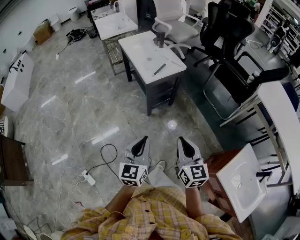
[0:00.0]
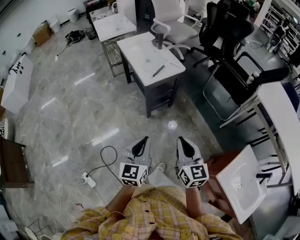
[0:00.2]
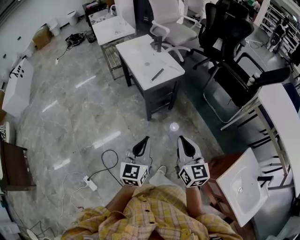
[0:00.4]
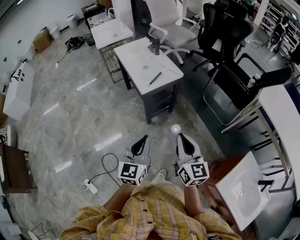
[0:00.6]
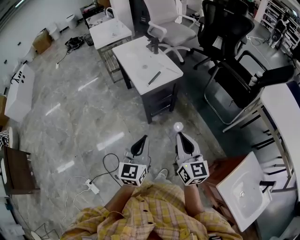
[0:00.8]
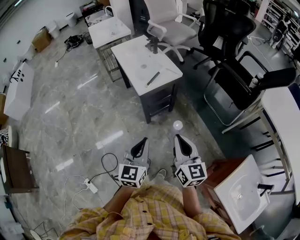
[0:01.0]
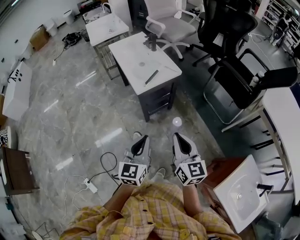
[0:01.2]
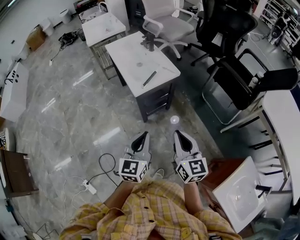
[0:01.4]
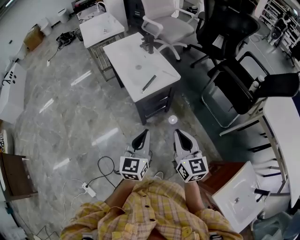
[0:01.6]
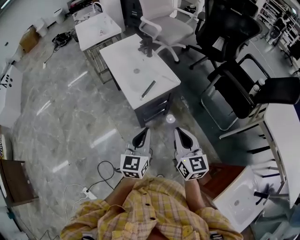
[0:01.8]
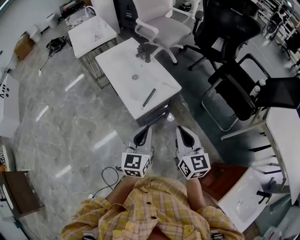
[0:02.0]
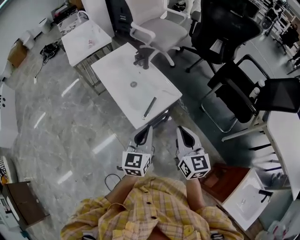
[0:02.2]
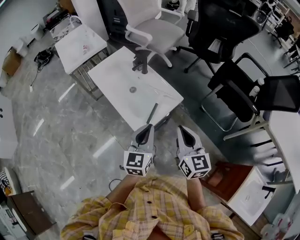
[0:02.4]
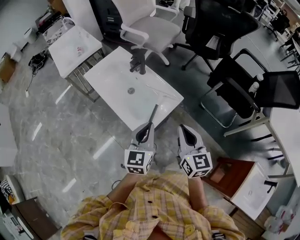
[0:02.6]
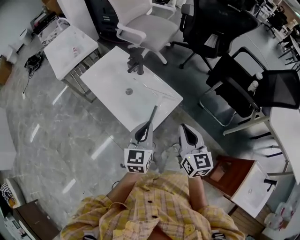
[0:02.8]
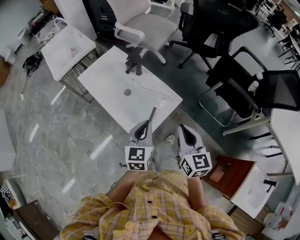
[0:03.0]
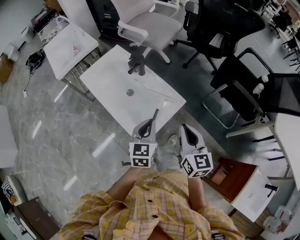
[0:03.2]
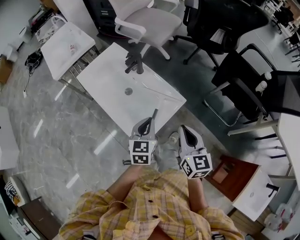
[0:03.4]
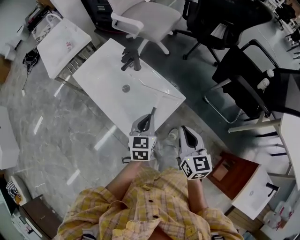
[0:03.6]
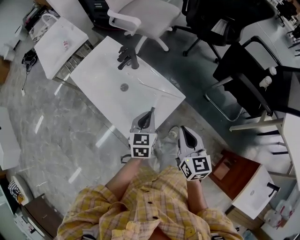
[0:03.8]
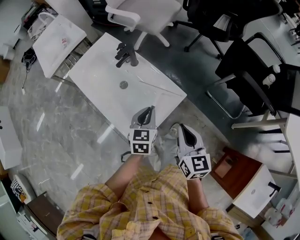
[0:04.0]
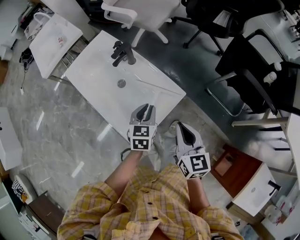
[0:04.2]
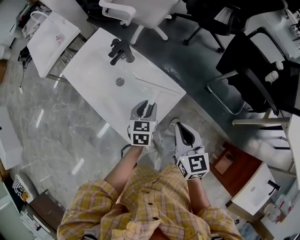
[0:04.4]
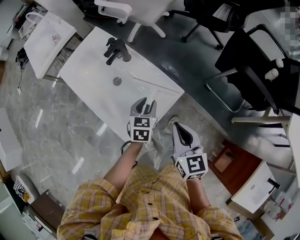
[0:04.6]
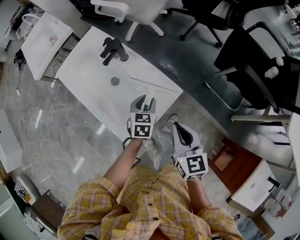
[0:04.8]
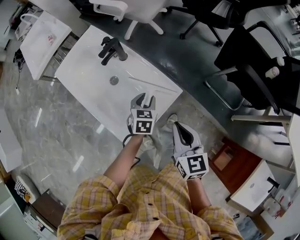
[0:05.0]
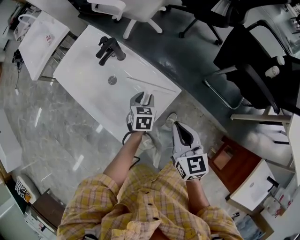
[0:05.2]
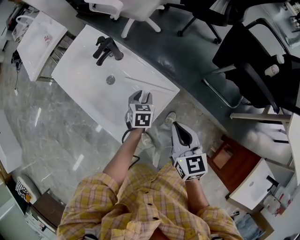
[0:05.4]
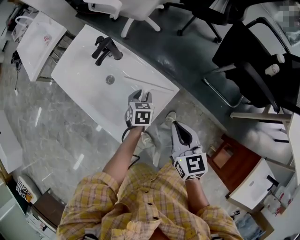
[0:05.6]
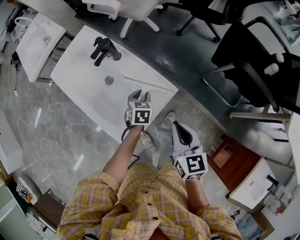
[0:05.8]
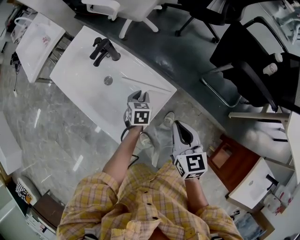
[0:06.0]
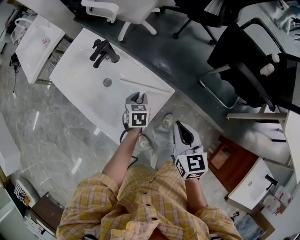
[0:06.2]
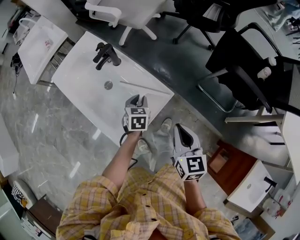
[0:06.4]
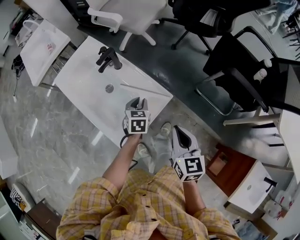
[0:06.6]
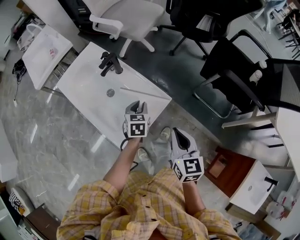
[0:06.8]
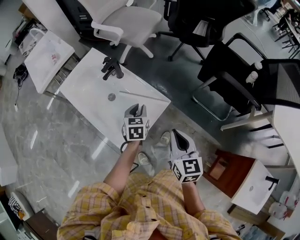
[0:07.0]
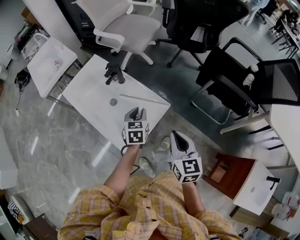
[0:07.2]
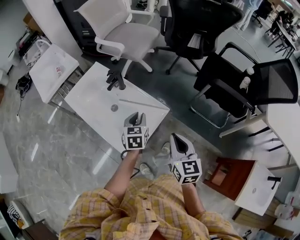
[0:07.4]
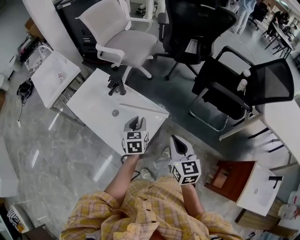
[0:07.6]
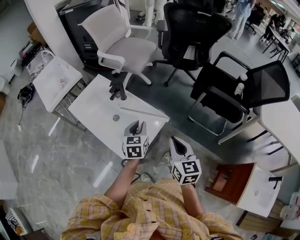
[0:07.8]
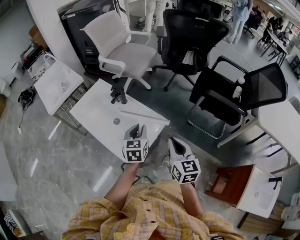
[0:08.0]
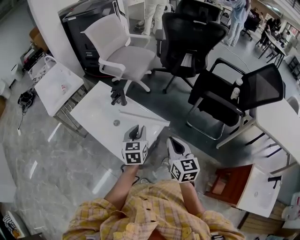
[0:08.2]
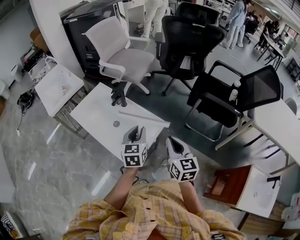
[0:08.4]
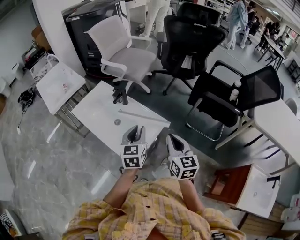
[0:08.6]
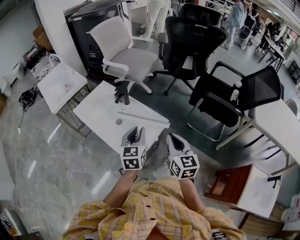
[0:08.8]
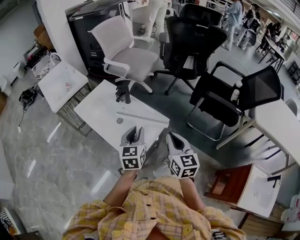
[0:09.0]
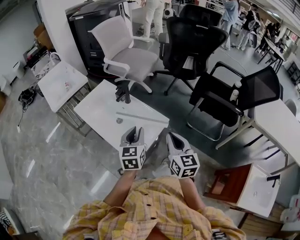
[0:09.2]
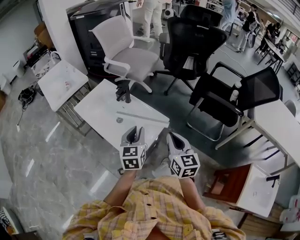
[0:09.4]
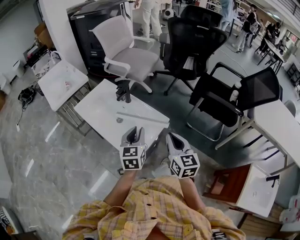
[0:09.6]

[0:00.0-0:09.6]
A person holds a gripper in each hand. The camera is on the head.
0:00.0 to 0:01.6: Both grippers move forward, roughly 20 cm.
0:01.6 to 0:03.2: The two grippers go about 35 cm forward.
0:03.2 to 0:04.8: The left gripper heads downward and forward, covering about 20 cm, turns by approximately 20 degrees, and opens, while the right gripper is displaced downward and forward by some 10 cm.
0:06.4 to 0:08.0: The right gripper moves upward and backward, about 10 cm, while the left gripper is displaced upward by approximately 20 cm, and rotates some 20 degrees.
0:08.0 to 0:09.6: The right gripper shifts by about 5 cm, while the left gripper travels backward and upward by about 10 cm.

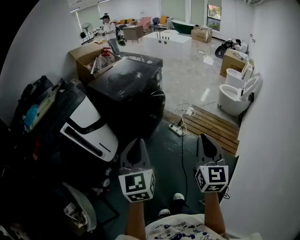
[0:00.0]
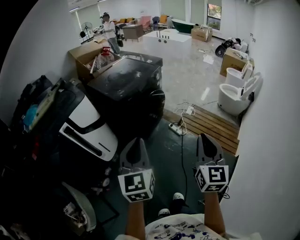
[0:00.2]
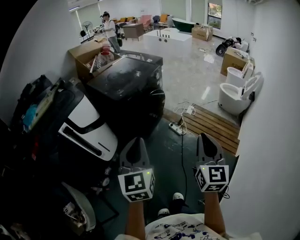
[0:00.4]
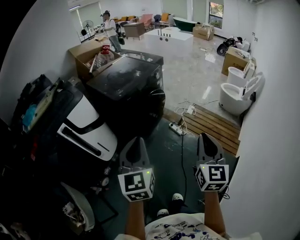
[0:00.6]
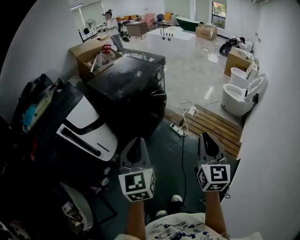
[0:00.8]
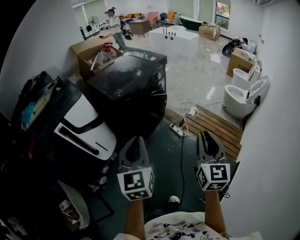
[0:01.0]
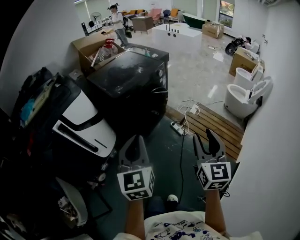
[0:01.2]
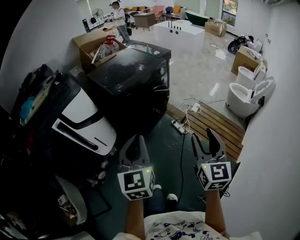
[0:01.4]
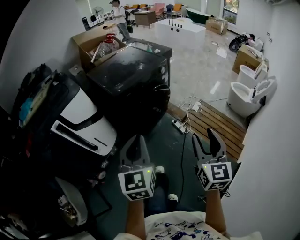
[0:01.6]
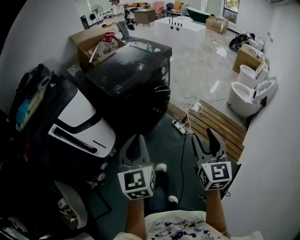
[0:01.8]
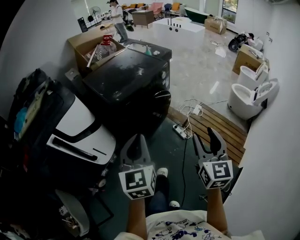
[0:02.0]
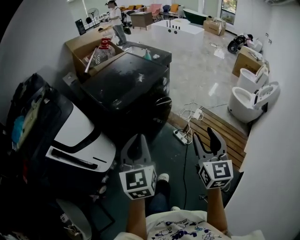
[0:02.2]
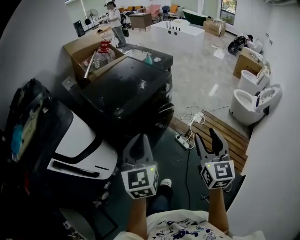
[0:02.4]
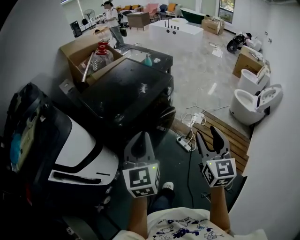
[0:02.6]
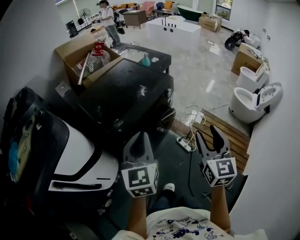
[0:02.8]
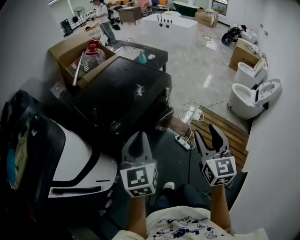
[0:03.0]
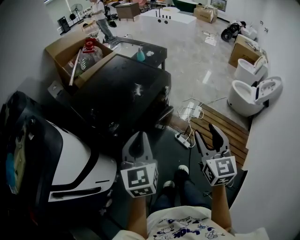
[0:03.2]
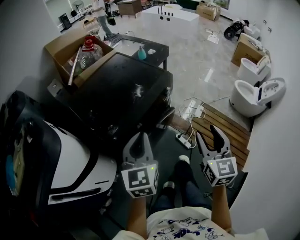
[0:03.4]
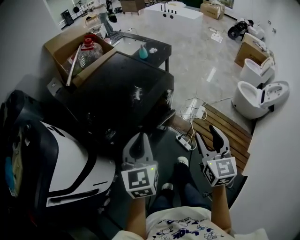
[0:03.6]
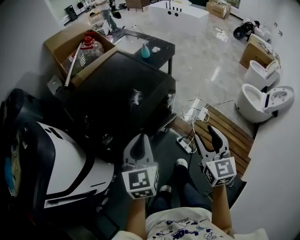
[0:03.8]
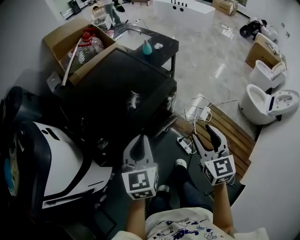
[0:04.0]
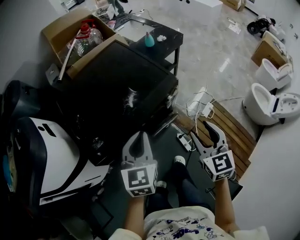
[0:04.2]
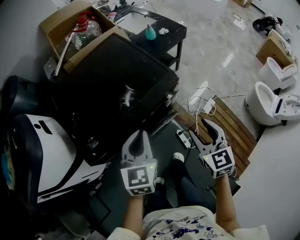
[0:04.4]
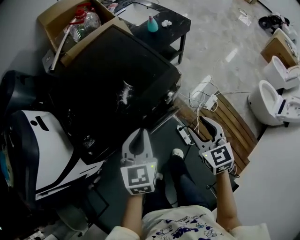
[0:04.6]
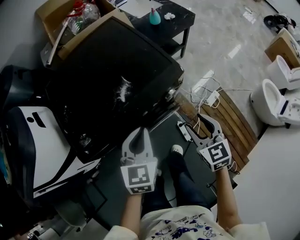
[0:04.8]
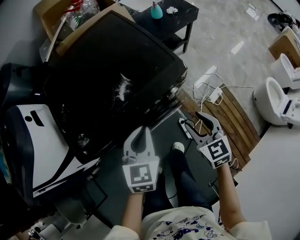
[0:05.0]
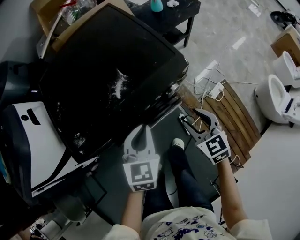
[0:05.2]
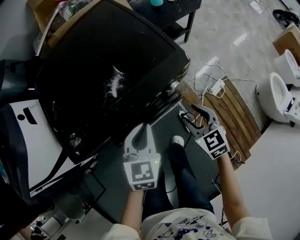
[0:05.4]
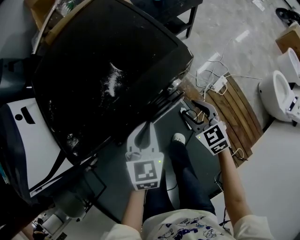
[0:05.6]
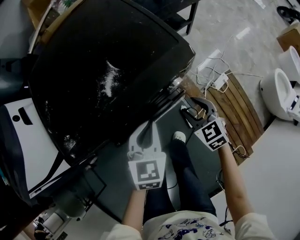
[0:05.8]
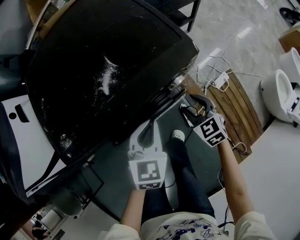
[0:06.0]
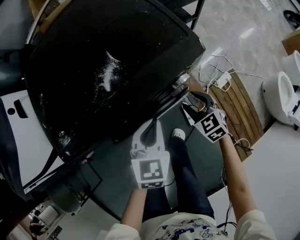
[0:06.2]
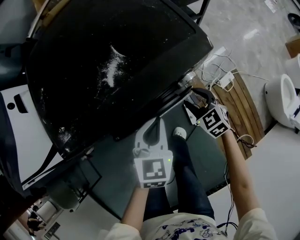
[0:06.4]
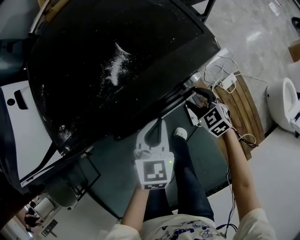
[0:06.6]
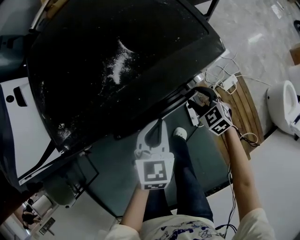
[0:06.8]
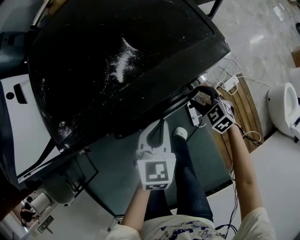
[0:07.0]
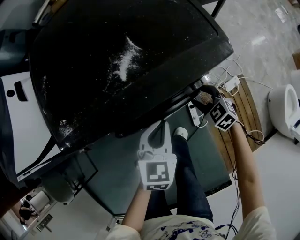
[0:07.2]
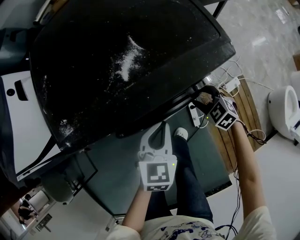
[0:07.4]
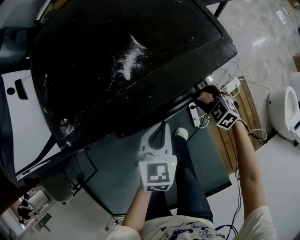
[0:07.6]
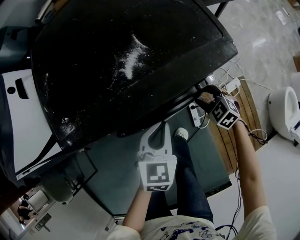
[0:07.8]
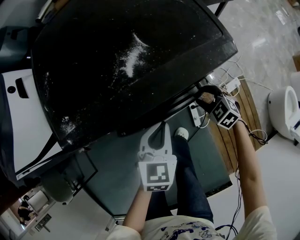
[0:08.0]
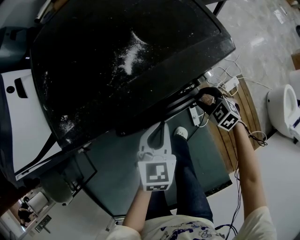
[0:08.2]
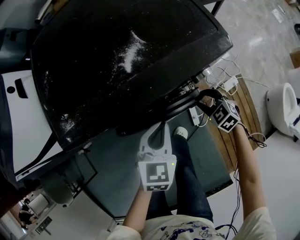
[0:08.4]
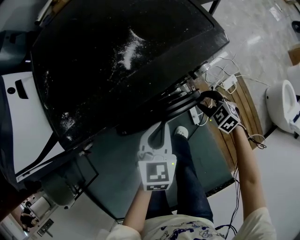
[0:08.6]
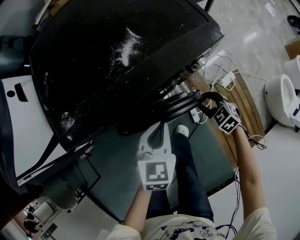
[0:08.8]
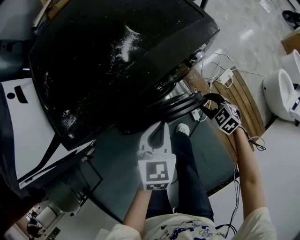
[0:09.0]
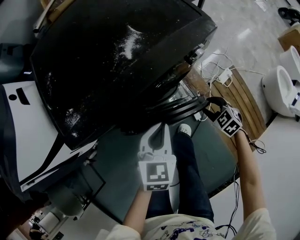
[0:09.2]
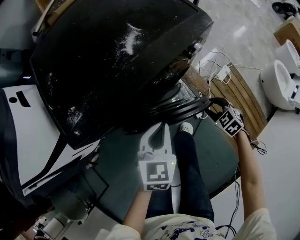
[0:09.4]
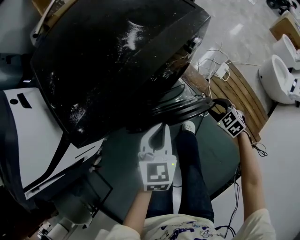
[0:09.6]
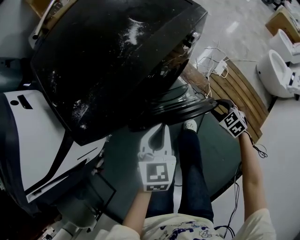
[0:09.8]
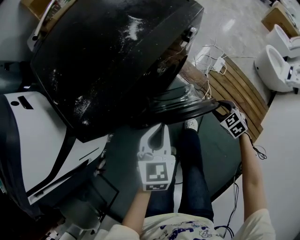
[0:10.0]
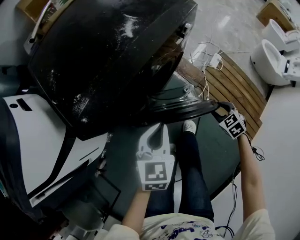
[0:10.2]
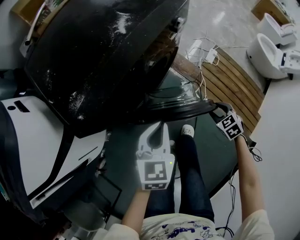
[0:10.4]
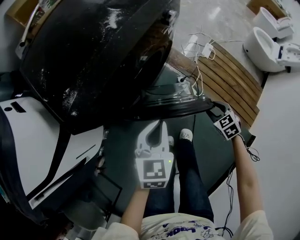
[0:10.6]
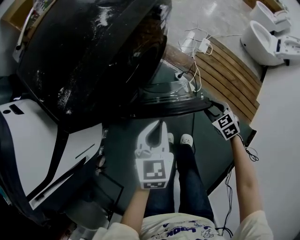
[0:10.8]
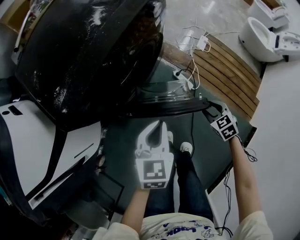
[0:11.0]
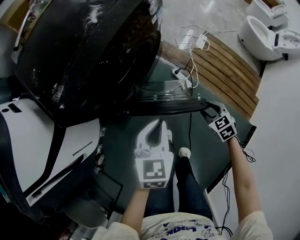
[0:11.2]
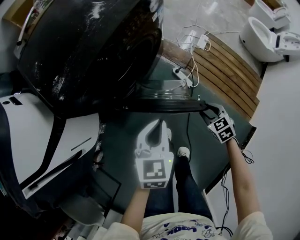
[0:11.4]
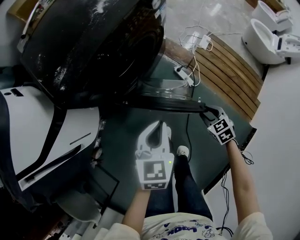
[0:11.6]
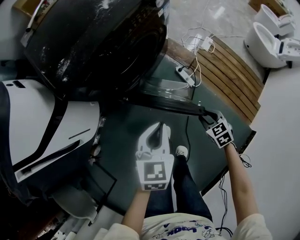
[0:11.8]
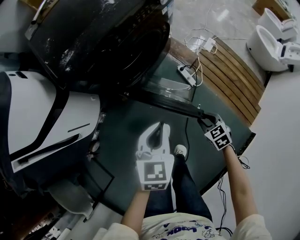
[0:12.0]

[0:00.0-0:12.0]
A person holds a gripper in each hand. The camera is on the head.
0:00.0 to 0:01.6: Both grippers move forward, approximately 10 cm. The right gripper opens its fingers.
0:01.6 to 0:03.0: The two grippers go about 35 cm forward.
0:03.0 to 0:04.4: The left gripper heads forward, downward and to the right, covering about 25 cm. The right gripper moves forward and downward, roughly 30 cm, and swivels roughly 30 degrees.
0:04.4 to 0:06.0: Both grippers travel together downward, roughly 20 cm. The right gripper turns by some 30 degrees.
0:06.0 to 0:07.6: The right gripper shifts approximately 5 cm downward, and swivels roughly 30 degrees.
0:07.6 to 0:09.0: The left gripper changes place by approximately 5 cm. The right gripper moves backward, roughly 10 cm.
0:09.0 to 0:10.4: The left gripper moves about 15 cm; the right gripper moves some 20 cm, and rotates about 30 degrees.
0:10.4 to 0:12.0: The two grippers go approximately 15 cm backward.

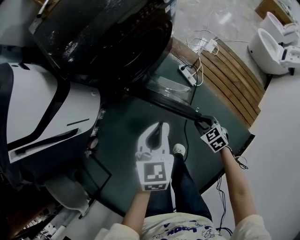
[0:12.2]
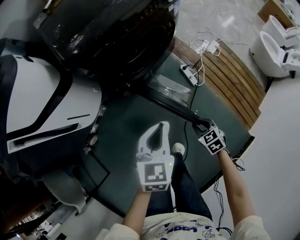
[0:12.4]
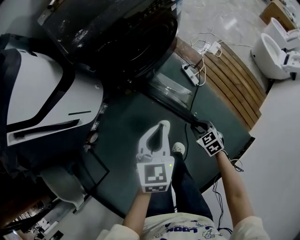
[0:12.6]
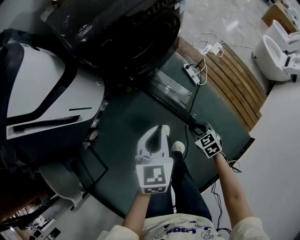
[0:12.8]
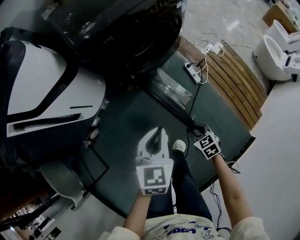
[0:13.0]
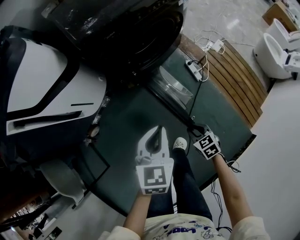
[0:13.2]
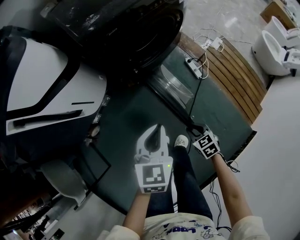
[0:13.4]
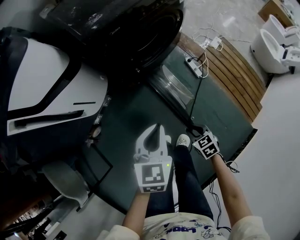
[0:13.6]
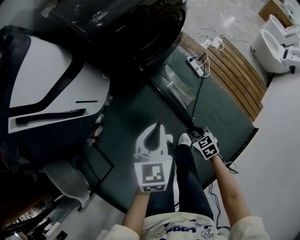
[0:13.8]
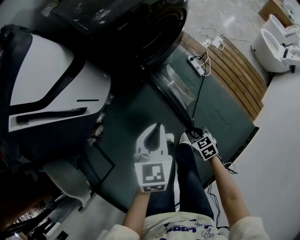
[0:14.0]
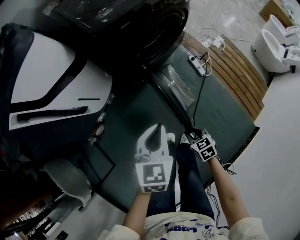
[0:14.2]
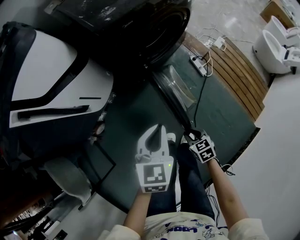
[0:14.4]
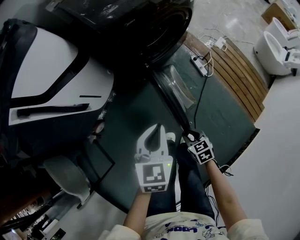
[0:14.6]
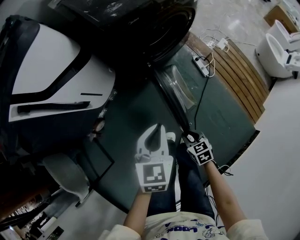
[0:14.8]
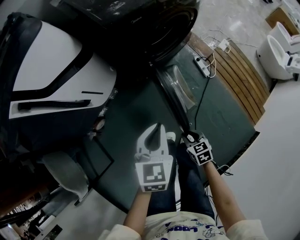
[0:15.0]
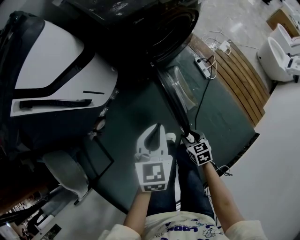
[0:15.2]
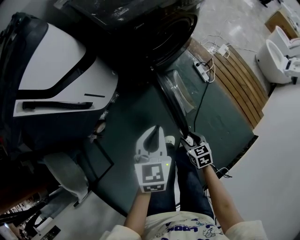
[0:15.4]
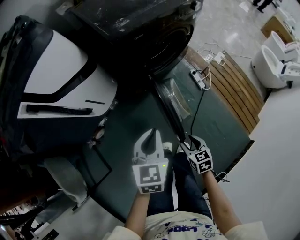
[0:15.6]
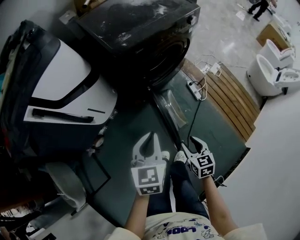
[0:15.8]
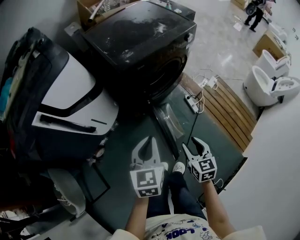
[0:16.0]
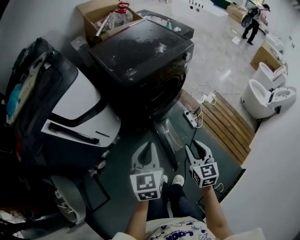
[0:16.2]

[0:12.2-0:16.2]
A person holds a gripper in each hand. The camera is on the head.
0:12.2 to 0:13.6: The grippers both shift to the left and backward by approximately 15 cm.
0:13.6 to 0:14.8: Both grippers move to the left, approximately 5 cm.
0:14.8 to 0:16.2: The right gripper travels upward by approximately 30 cm, and turns by roughly 40 degrees. The left gripper heads upward, covering about 15 cm.
